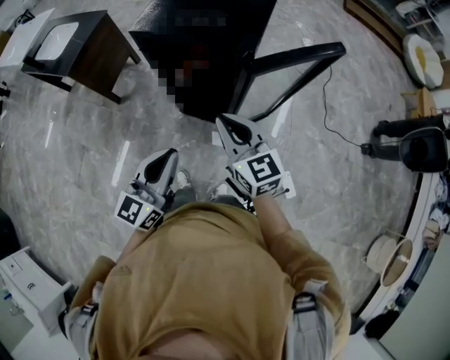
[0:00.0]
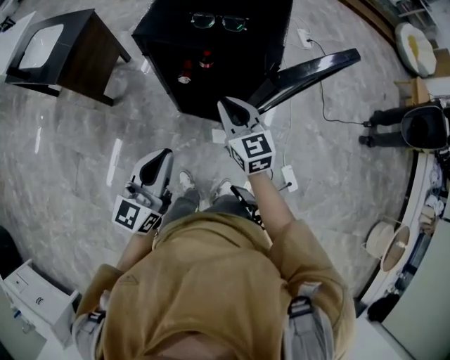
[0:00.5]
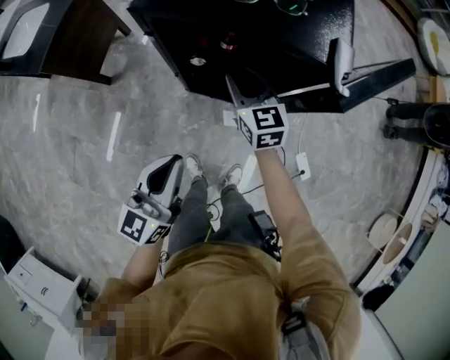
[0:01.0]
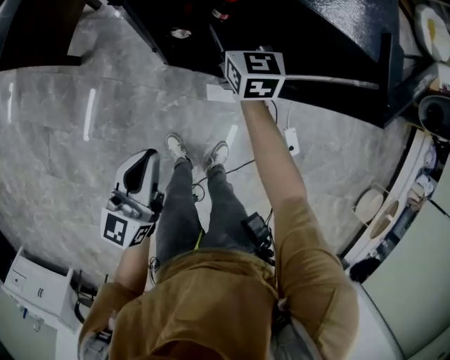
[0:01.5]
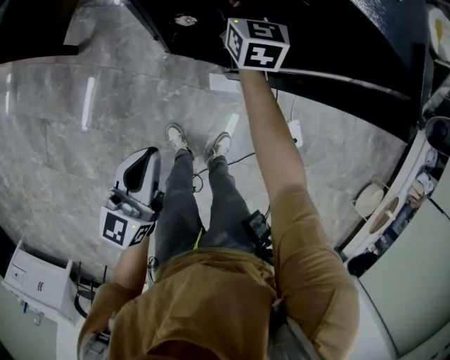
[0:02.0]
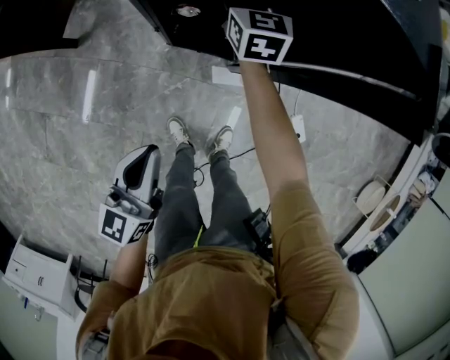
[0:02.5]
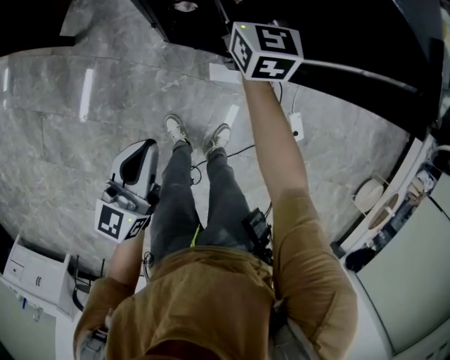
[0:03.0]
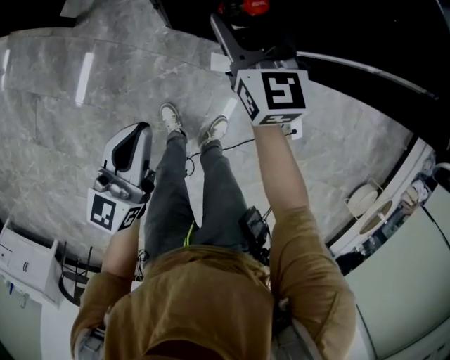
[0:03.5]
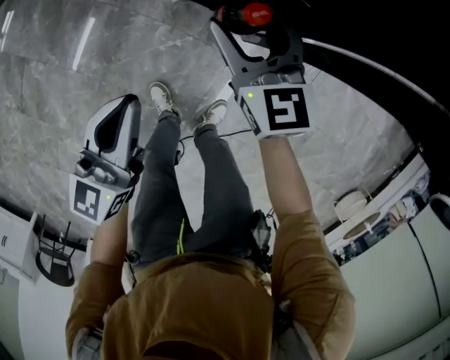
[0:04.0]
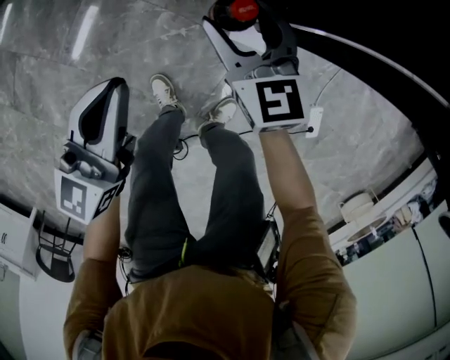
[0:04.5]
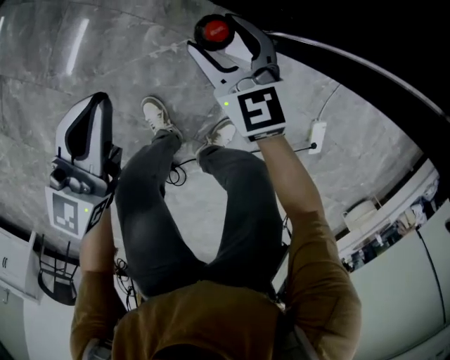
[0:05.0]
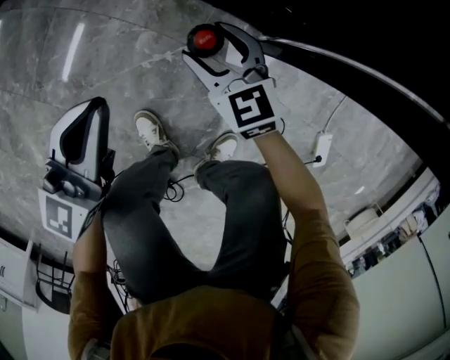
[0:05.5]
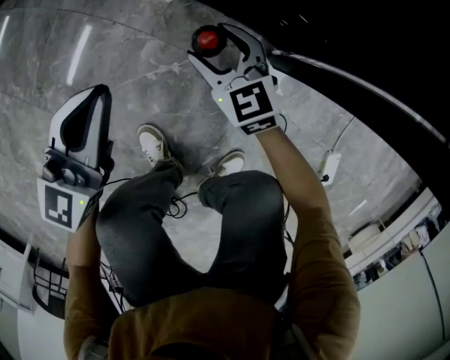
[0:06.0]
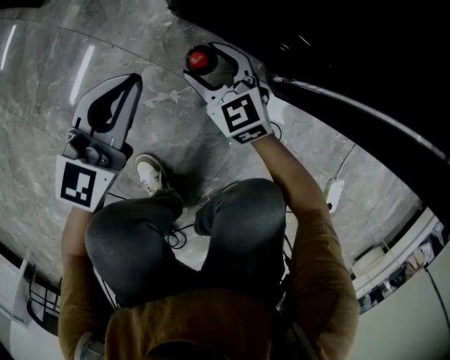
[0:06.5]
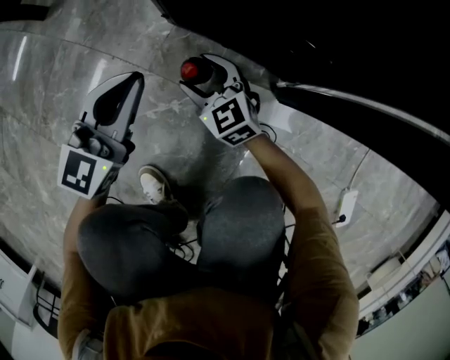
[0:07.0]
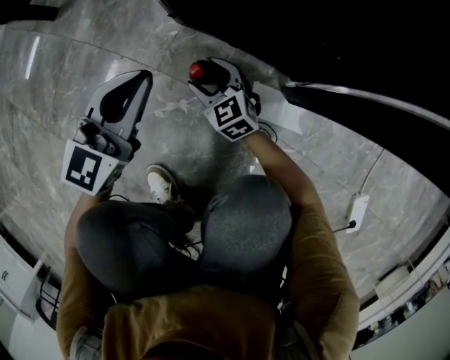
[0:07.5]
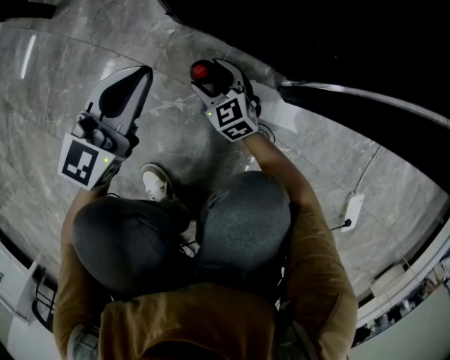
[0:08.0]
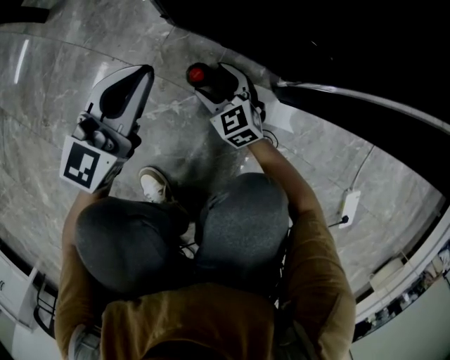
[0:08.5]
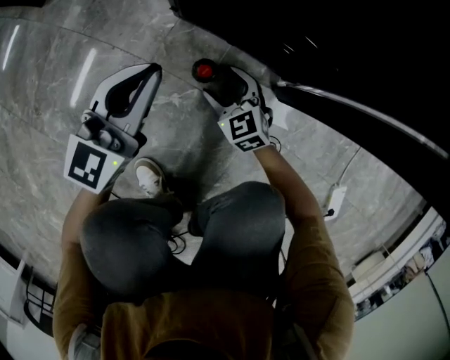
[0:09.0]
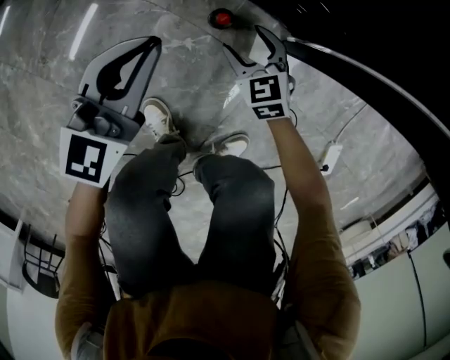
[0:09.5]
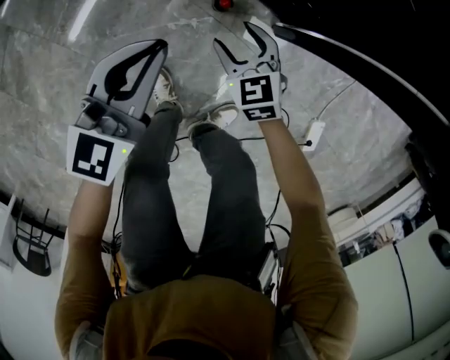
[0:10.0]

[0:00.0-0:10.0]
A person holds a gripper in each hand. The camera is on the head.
0.0 to 2.0 s: The right gripper is displaced forward and downward by roughly 50 cm, turns by about 30 degrees, and opens. Meanwhile the left gripper heads downward, to the left and forward, covering approximately 35 cm.
2.0 to 4.0 s: The right gripper shifts about 20 cm backward and downward, and rotates roughly 20 degrees, while the left gripper goes some 15 cm downward.
4.0 to 6.0 s: Both grippers move downward, roughly 40 cm.
6.0 to 8.0 s: The left gripper travels downward and to the right by about 15 cm, while the right gripper goes some 20 cm downward.
8.0 to 10.0 s: The grippers both shift upward by roughly 25 cm.

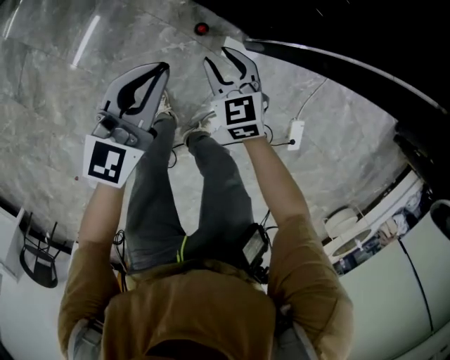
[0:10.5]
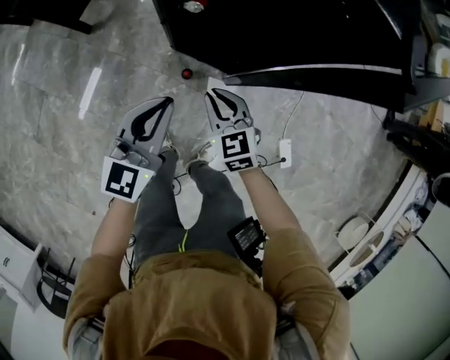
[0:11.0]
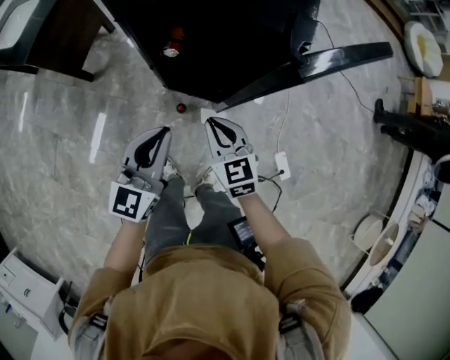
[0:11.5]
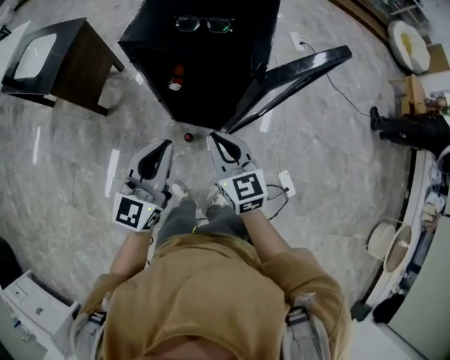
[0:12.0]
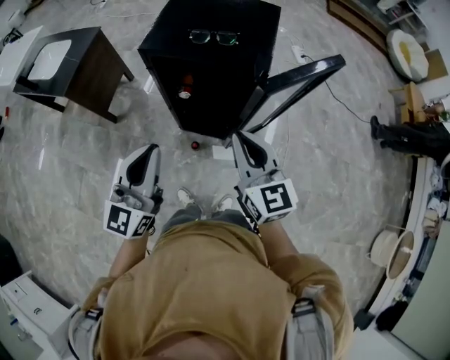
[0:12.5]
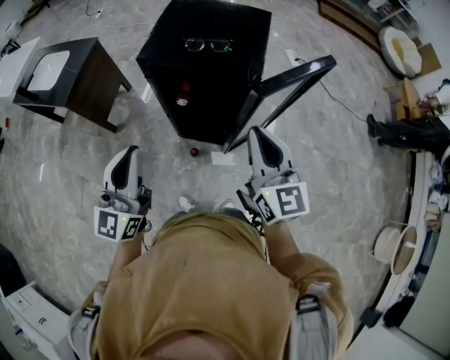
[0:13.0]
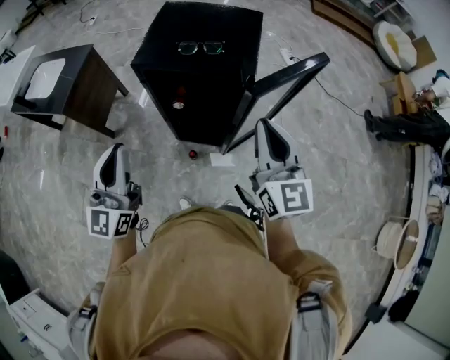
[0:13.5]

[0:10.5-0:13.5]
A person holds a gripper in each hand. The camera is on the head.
10.5 to 12.0 s: The grippers both shift upward by approximately 50 cm. The right gripper swivels some 30 degrees, and closes its fingers.
12.0 to 13.5 s: The right gripper heads upward and to the right, covering roughly 20 cm, and rotates some 30 degrees; the left gripper shifts about 15 cm upward and to the left.

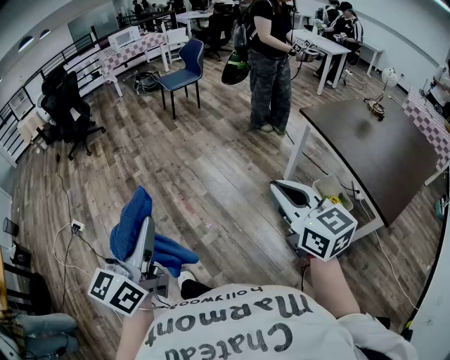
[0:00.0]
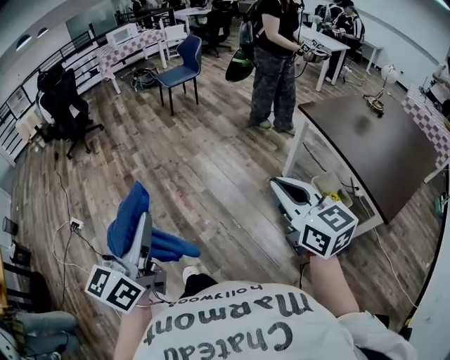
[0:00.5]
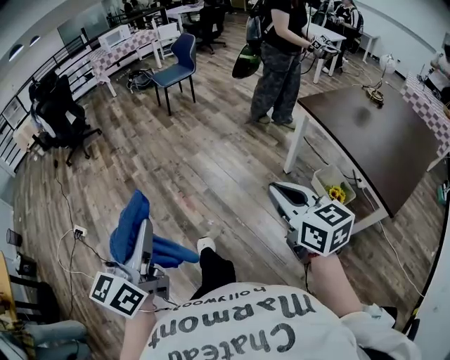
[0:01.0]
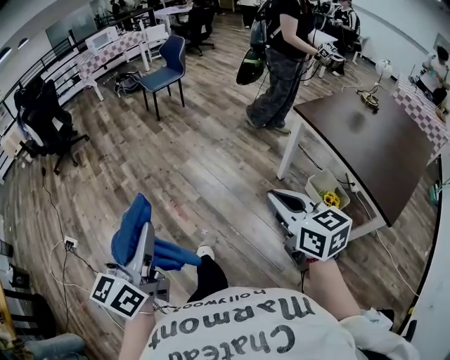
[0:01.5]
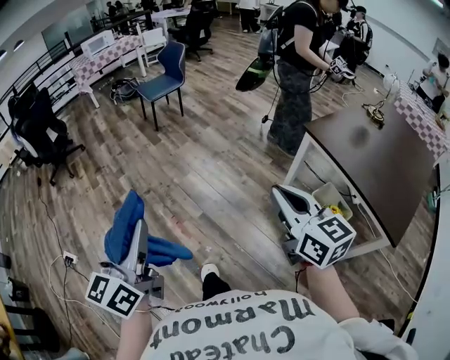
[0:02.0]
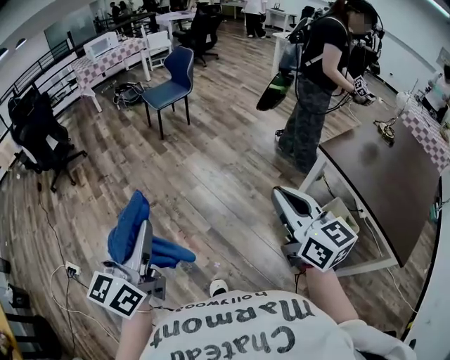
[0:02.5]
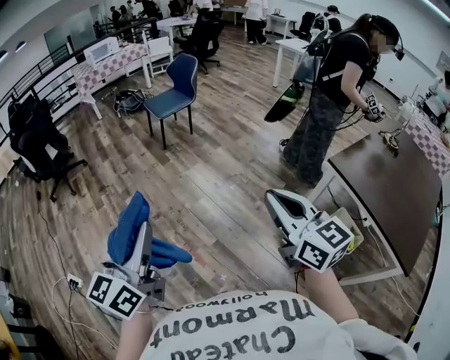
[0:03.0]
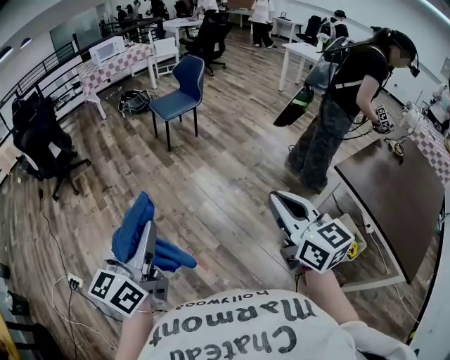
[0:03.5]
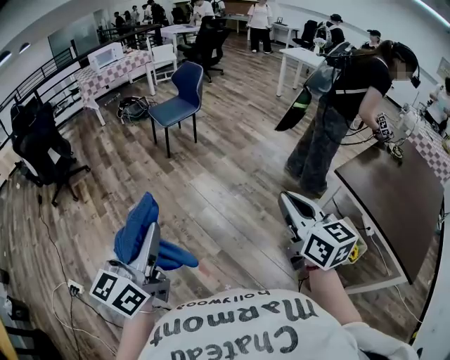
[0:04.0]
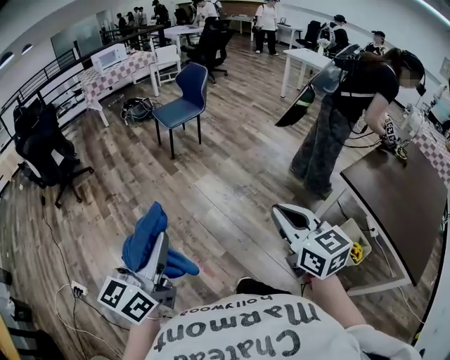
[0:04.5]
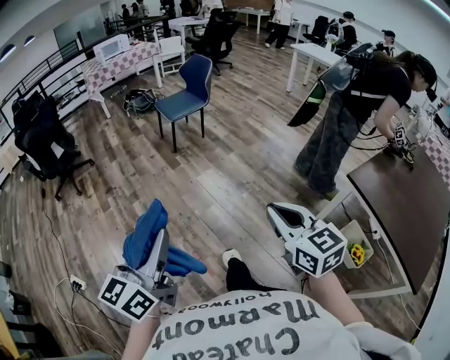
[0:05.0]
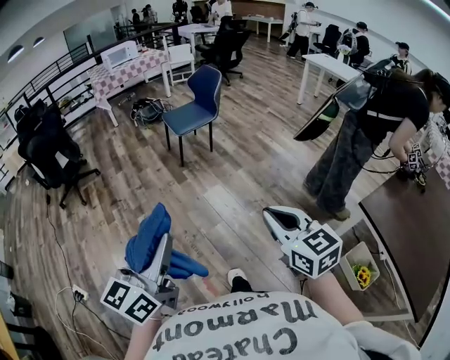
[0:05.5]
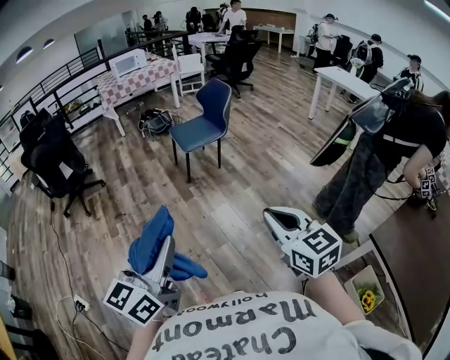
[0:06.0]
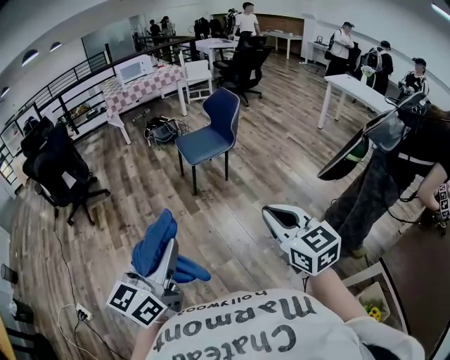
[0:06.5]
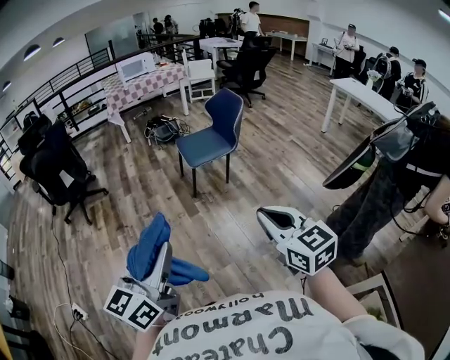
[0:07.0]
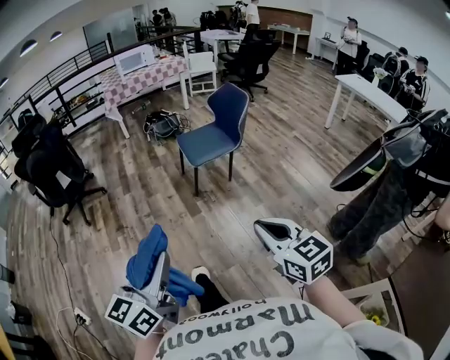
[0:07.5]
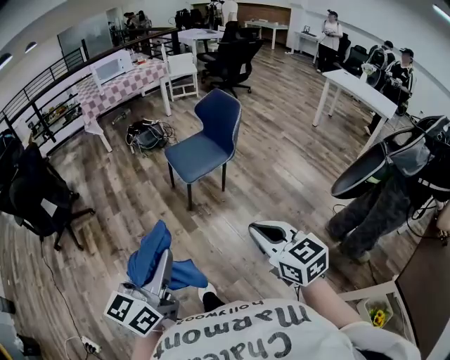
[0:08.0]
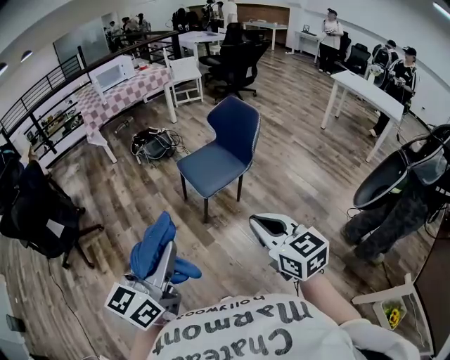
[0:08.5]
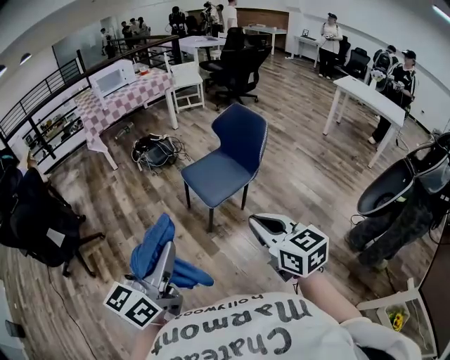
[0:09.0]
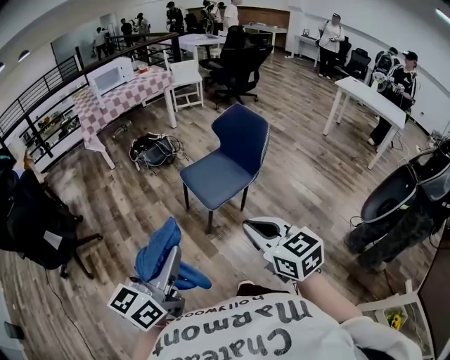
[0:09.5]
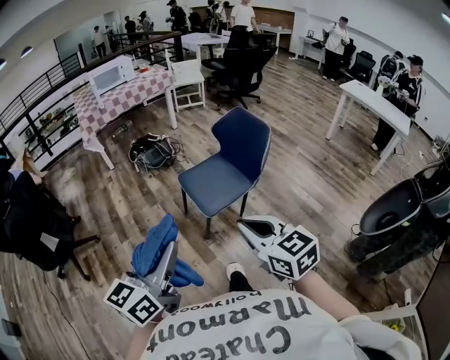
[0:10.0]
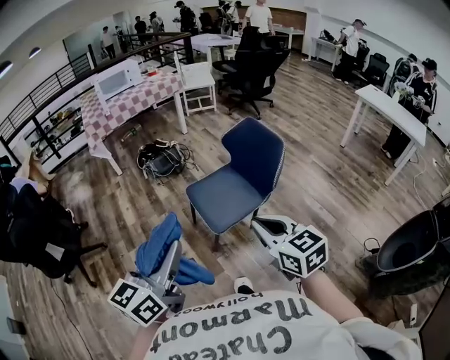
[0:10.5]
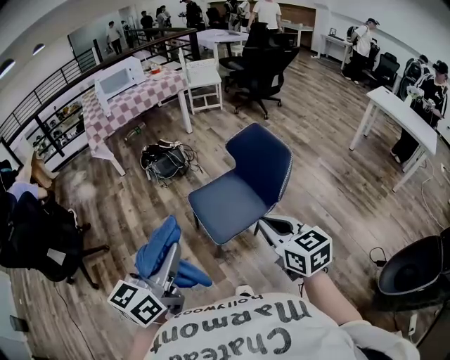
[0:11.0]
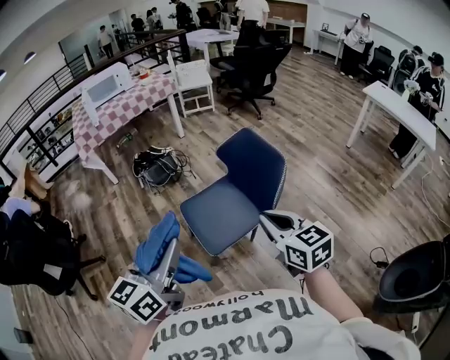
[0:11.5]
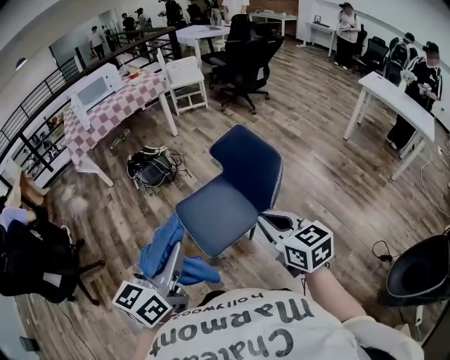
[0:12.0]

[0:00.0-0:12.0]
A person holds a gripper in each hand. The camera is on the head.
0.0 to 2.0 s: The grippers both shift forward by some 20 cm.
2.0 to 4.0 s: The grippers both shift forward and to the left by some 20 cm.
4.0 to 6.0 s: The grippers both shift forward by about 25 cm. The right gripper rotates about 20 degrees.
6.0 to 8.0 s: Both grippers move forward, roughly 30 cm.
8.0 to 10.0 s: The left gripper travels forward by some 25 cm. The right gripper heads forward and to the left, covering some 30 cm.
10.0 to 12.0 s: The left gripper moves forward, about 25 cm. Meanwhile the right gripper goes about 30 cm forward and to the right.

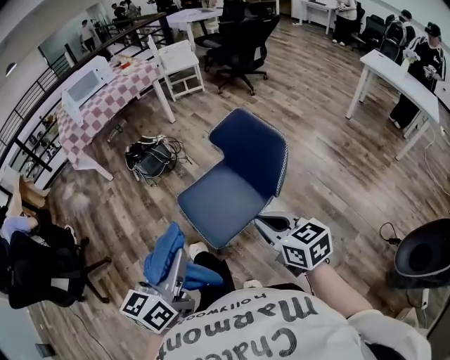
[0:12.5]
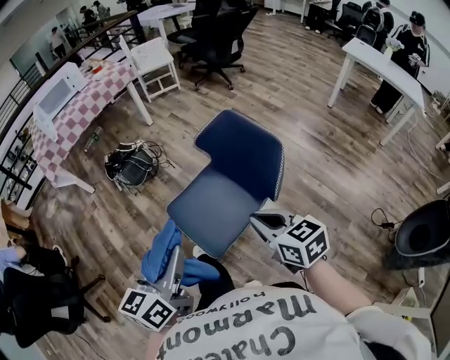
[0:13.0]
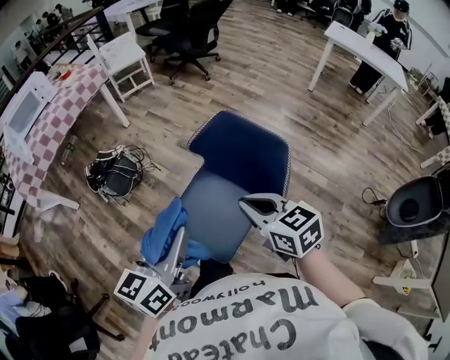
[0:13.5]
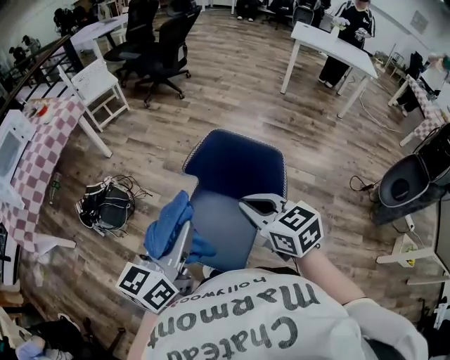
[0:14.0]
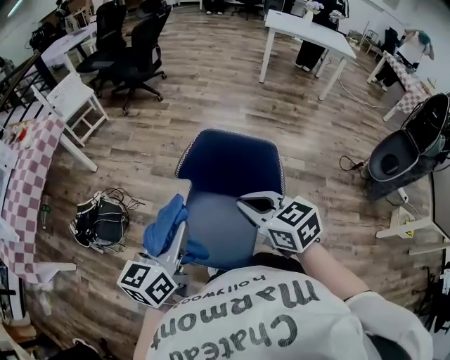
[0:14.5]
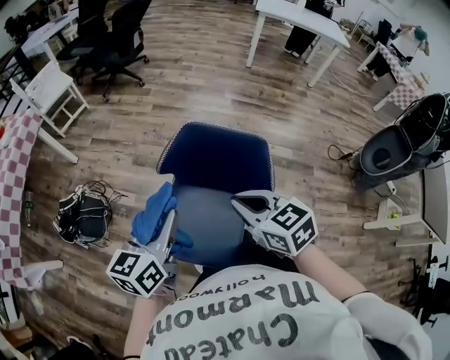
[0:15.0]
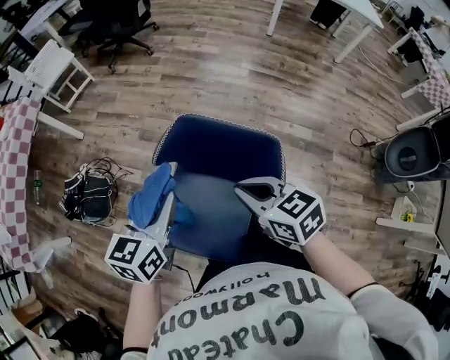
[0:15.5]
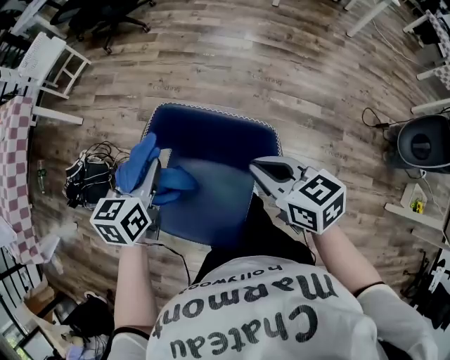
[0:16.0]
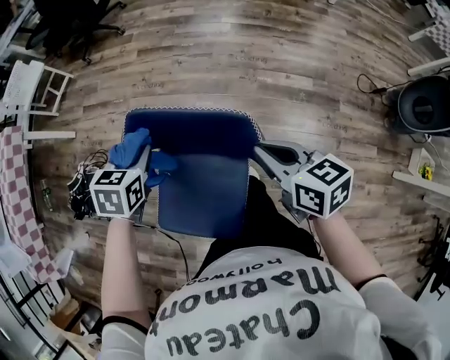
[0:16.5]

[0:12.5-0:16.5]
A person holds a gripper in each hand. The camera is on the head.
12.5 to 14.5 s: The right gripper shifts by roughly 25 cm, and changes its angle by roughly 30 degrees. The left gripper moves approximately 35 cm, and changes its angle by about 40 degrees.
14.5 to 16.5 s: The left gripper goes approximately 30 cm forward, downward and to the right, and points its fingers about 40 degrees further downward. Meanwhile the right gripper moves to the right, downward and forward, approximately 25 cm, and turns by some 30 degrees.
